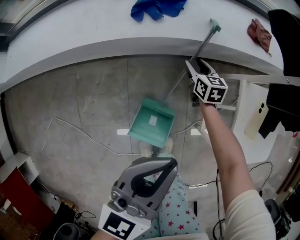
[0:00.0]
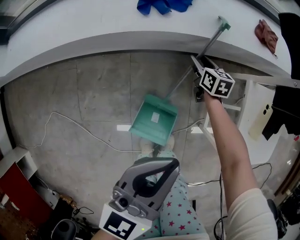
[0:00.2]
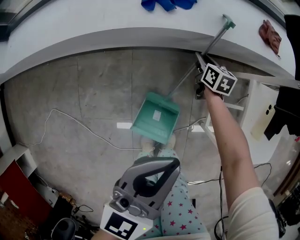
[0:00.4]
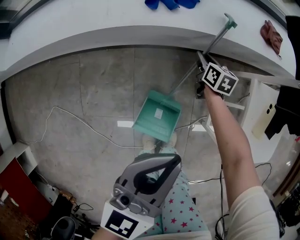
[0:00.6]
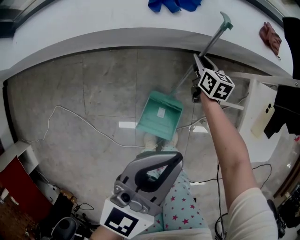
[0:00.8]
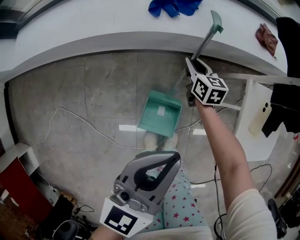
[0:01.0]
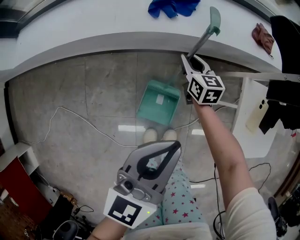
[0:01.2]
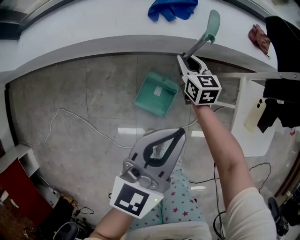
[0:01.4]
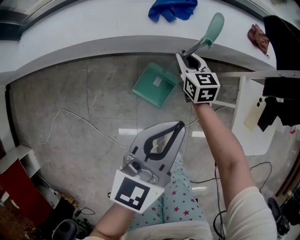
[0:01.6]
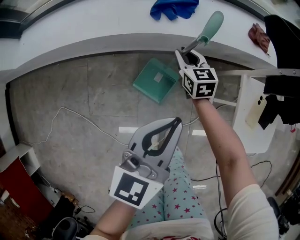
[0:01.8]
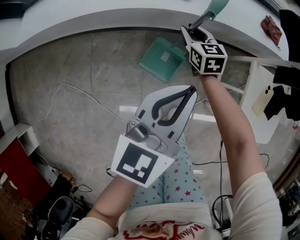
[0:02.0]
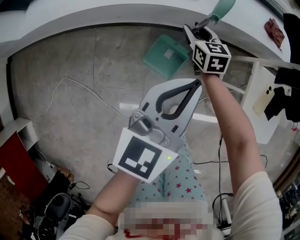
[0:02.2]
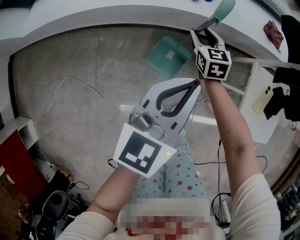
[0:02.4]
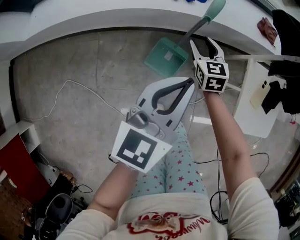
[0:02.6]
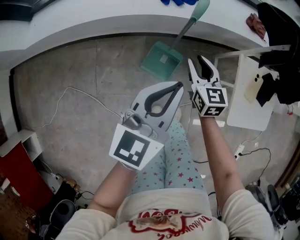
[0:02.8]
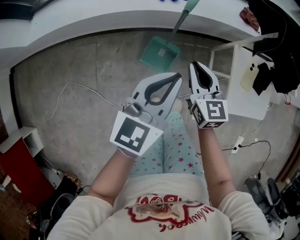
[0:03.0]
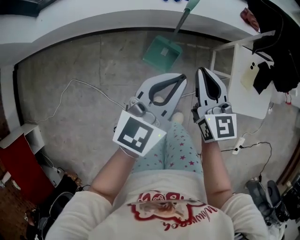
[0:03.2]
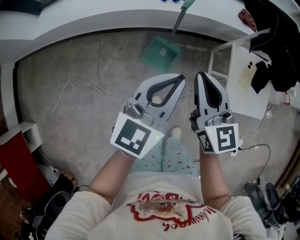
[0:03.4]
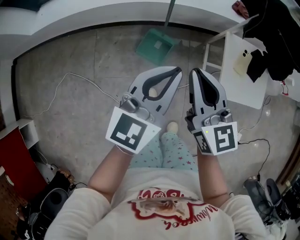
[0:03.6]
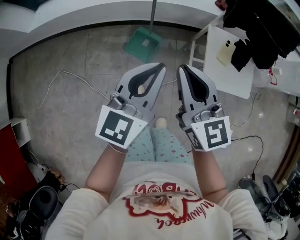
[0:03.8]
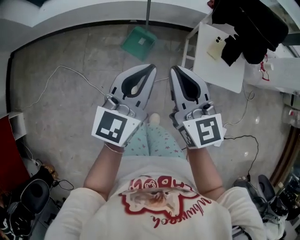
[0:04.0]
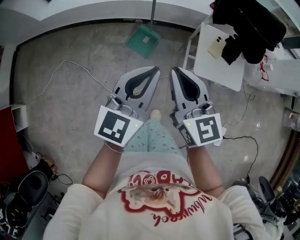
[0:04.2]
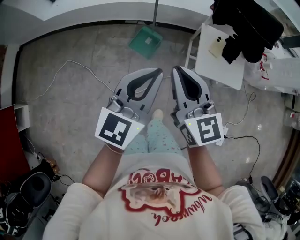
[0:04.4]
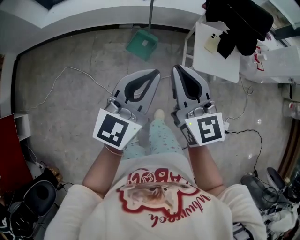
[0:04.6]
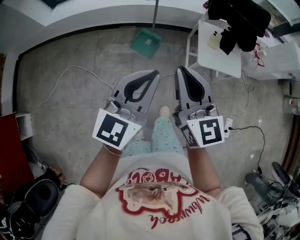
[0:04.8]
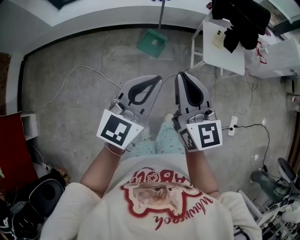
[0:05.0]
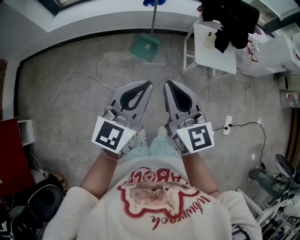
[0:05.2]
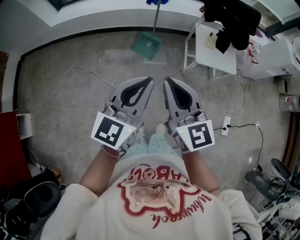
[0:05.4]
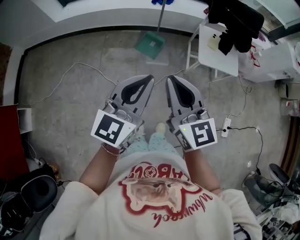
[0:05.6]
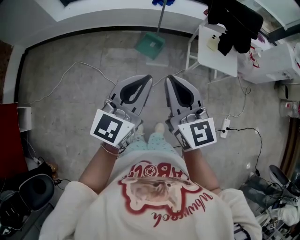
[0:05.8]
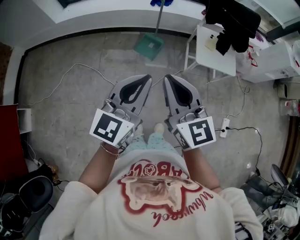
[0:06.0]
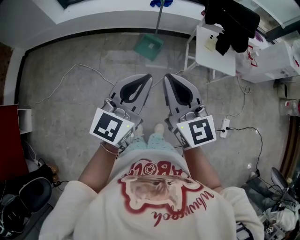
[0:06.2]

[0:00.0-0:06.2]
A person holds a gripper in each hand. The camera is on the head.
0:00.0 to 0:01.6: The right gripper goes approximately 15 cm upward and to the left, and closes up.
0:01.6 to 0:03.2: The left gripper is displaced upward and backward by approximately 15 cm, while the right gripper shifts roughly 35 cm upward and backward, and opens and closes again.
0:03.2 to 0:04.6: The two grippers go roughly 35 cm backward and upward.
0:04.6 to 0:06.2: Both grippers move backward and to the left, some 20 cm.

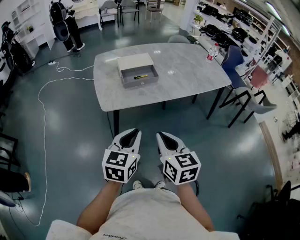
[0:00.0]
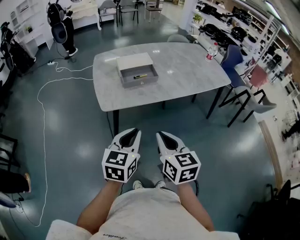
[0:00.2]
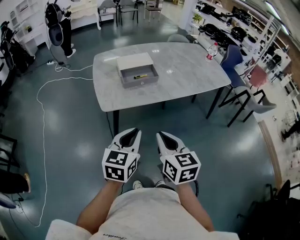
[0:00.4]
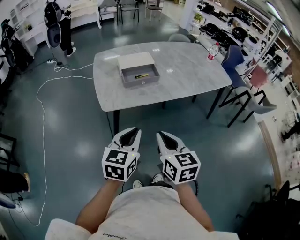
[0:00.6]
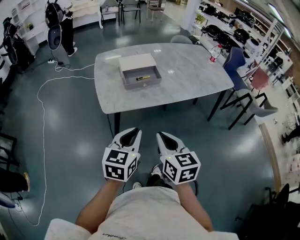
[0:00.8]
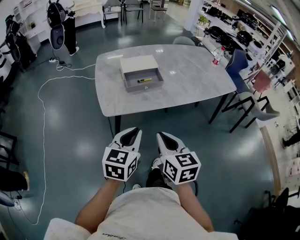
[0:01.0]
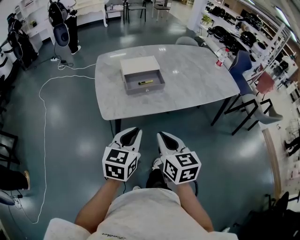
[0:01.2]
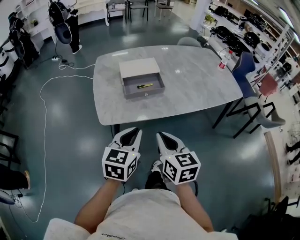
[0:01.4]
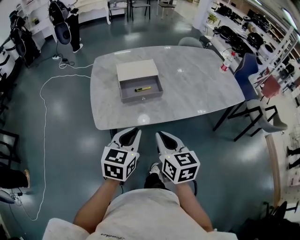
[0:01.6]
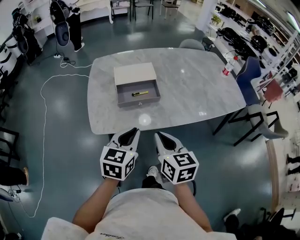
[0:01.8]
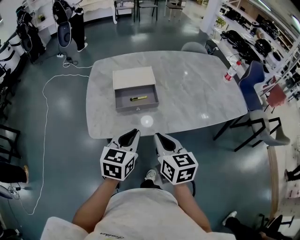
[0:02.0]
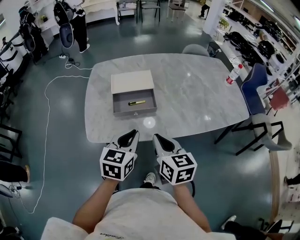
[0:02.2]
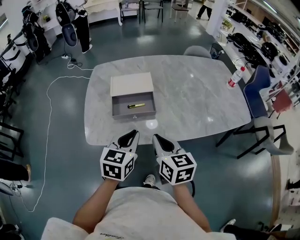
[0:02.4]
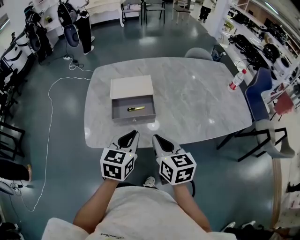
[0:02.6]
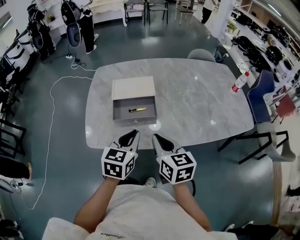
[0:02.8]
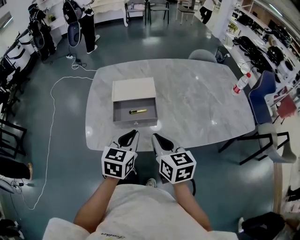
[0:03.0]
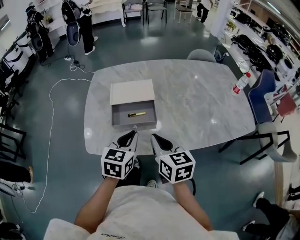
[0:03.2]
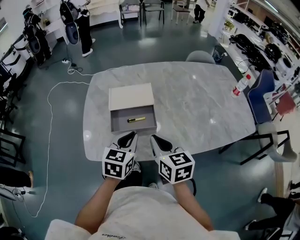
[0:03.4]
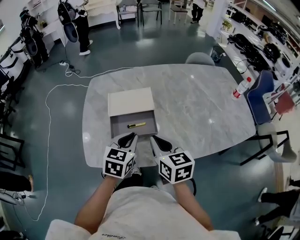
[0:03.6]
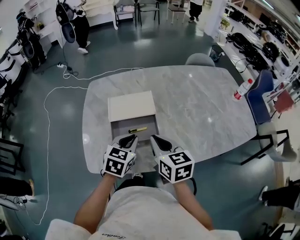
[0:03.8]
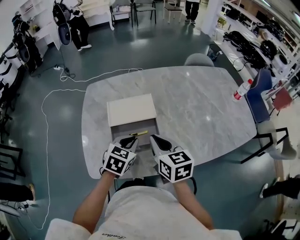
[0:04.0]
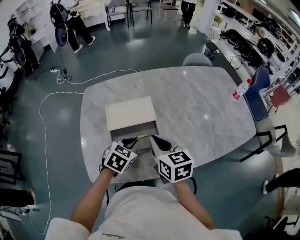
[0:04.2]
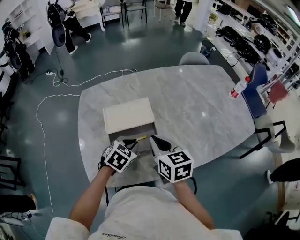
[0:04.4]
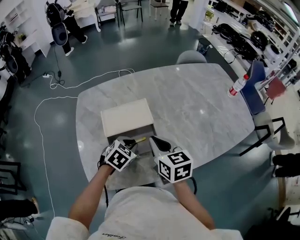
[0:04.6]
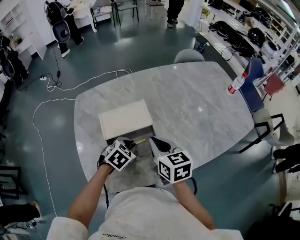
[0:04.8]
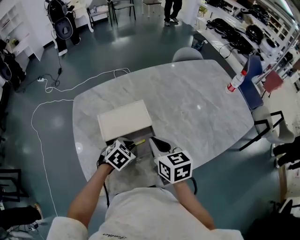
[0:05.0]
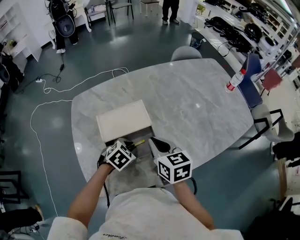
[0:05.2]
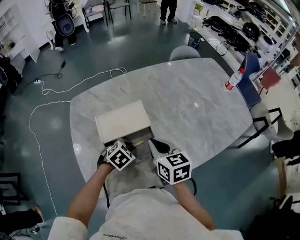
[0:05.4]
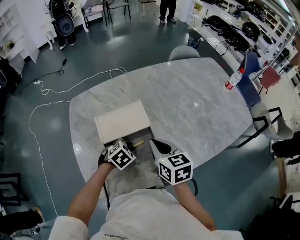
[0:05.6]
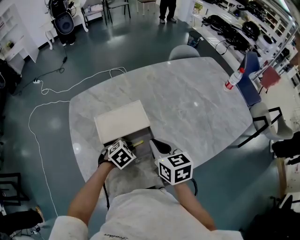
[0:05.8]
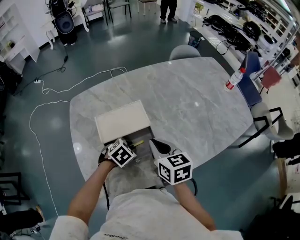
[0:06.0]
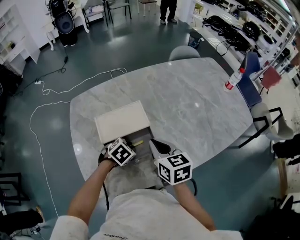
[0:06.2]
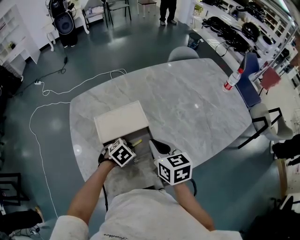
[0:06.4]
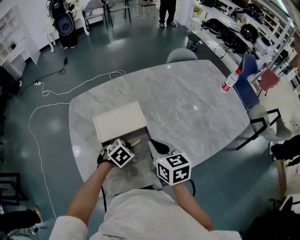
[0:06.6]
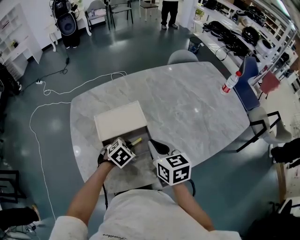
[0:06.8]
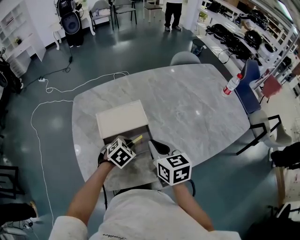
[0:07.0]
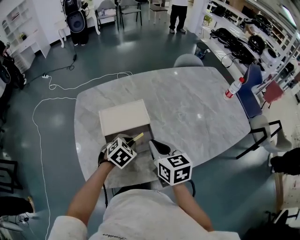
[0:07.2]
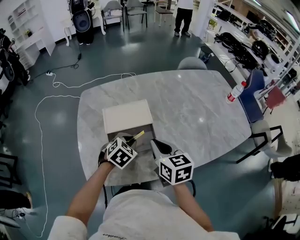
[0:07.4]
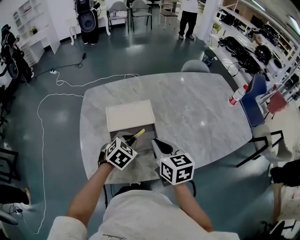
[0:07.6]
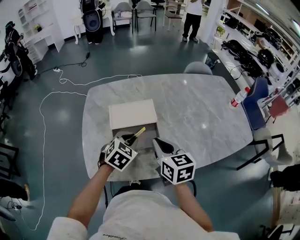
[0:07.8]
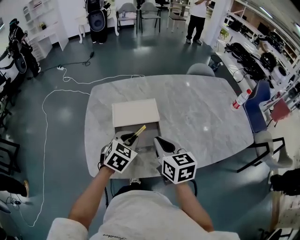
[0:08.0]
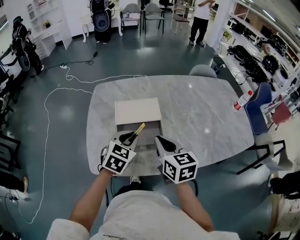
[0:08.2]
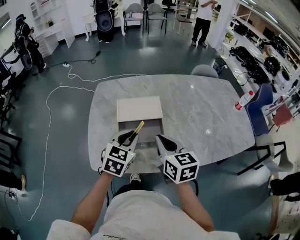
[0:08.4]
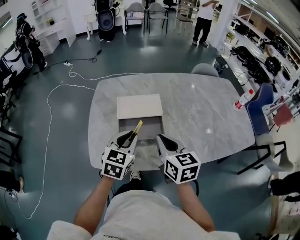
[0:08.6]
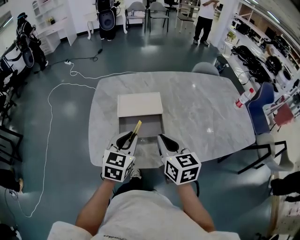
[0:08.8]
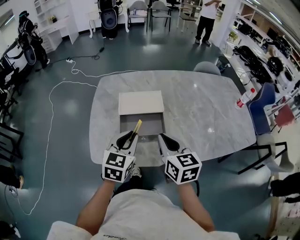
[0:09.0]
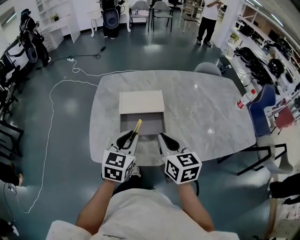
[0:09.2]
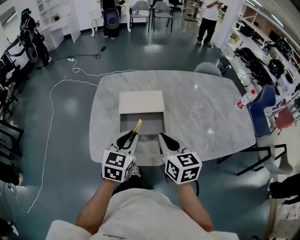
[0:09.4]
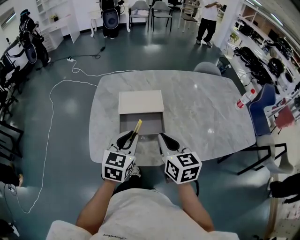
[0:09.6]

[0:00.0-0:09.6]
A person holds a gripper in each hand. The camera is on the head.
0:00.0 to 0:01.6: The grippers both shift forward by some 15 cm.
0:01.6 to 0:03.2: The grippers both shift forward and to the right by some 20 cm.
0:03.2 to 0:04.8: The right gripper shifts some 15 cm forward. Meanwhile the left gripper heads forward and downward, covering approximately 20 cm, and turns by some 50 degrees.
0:04.8 to 0:06.4: The grippers move only a little.
0:06.4 to 0:08.0: The left gripper shifts roughly 15 cm upward, and turns by about 30 degrees, while the right gripper moves backward, some 5 cm.
0:08.0 to 0:09.6: The grippers both shift backward by roughly 5 cm. The left gripper swivels about 30 degrees.

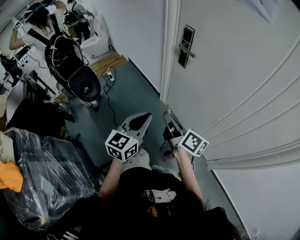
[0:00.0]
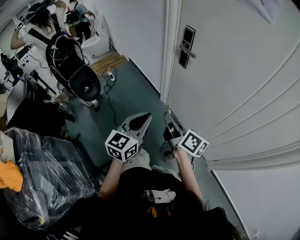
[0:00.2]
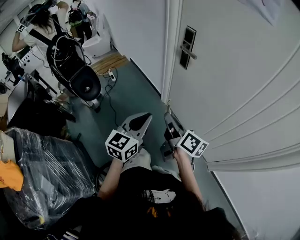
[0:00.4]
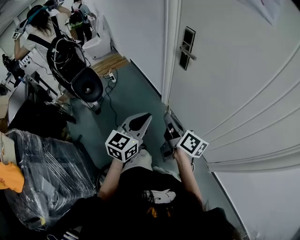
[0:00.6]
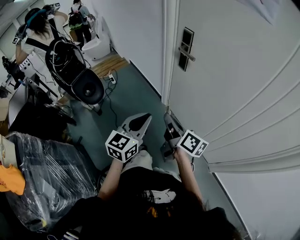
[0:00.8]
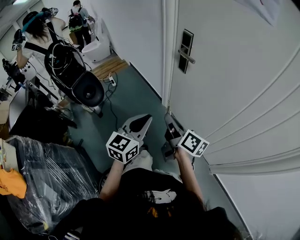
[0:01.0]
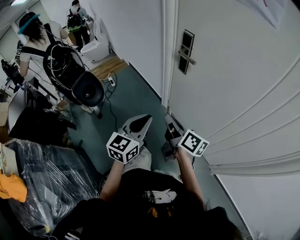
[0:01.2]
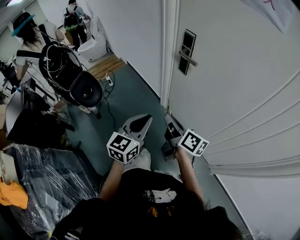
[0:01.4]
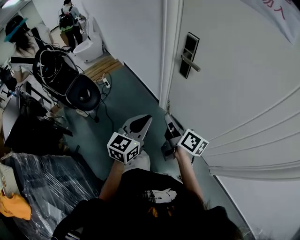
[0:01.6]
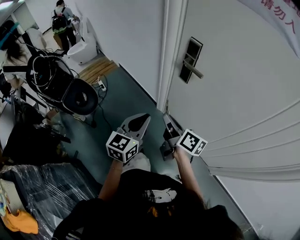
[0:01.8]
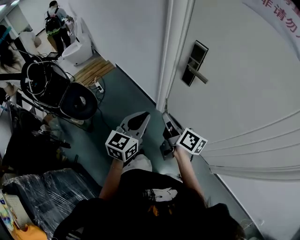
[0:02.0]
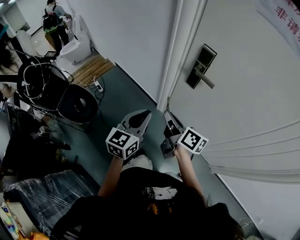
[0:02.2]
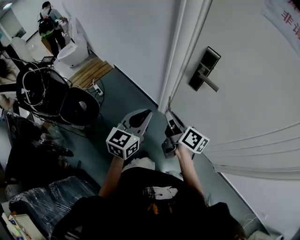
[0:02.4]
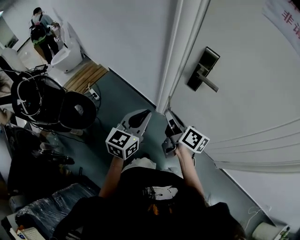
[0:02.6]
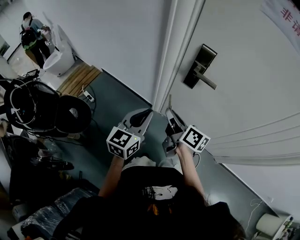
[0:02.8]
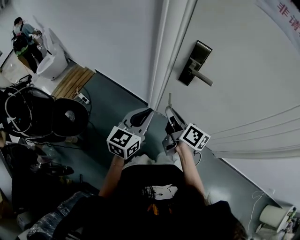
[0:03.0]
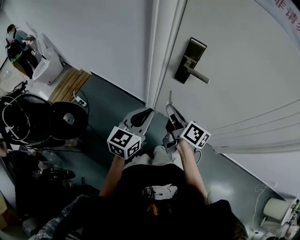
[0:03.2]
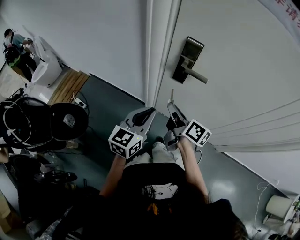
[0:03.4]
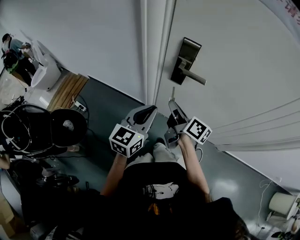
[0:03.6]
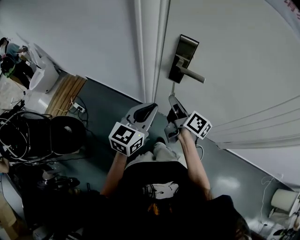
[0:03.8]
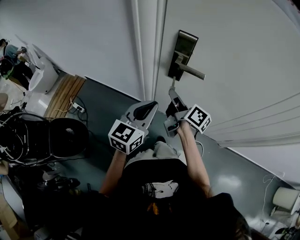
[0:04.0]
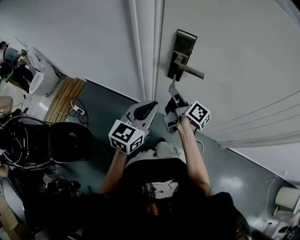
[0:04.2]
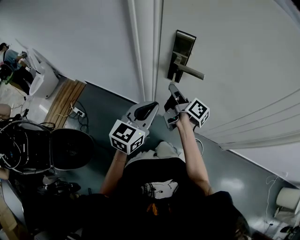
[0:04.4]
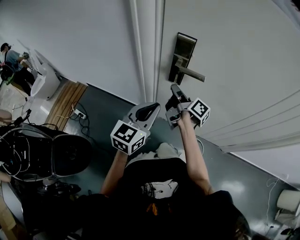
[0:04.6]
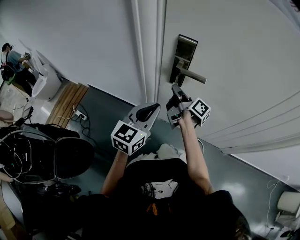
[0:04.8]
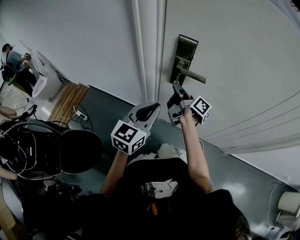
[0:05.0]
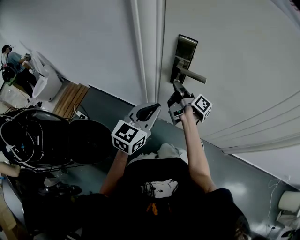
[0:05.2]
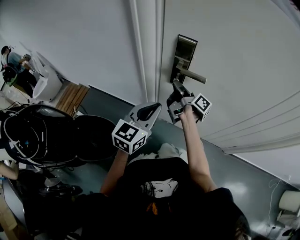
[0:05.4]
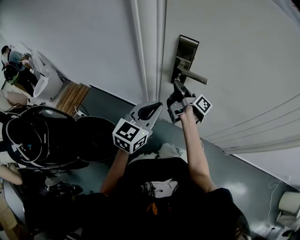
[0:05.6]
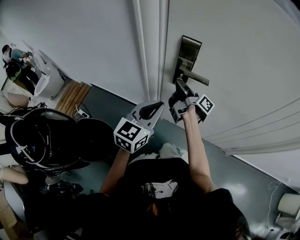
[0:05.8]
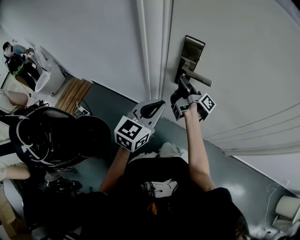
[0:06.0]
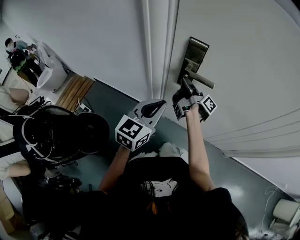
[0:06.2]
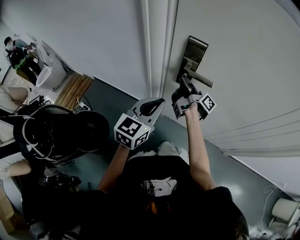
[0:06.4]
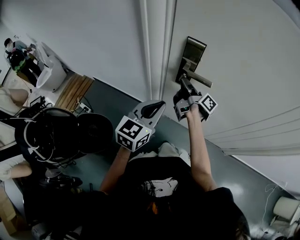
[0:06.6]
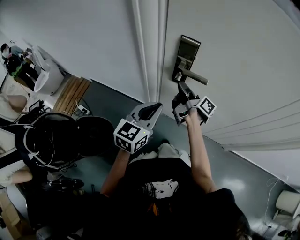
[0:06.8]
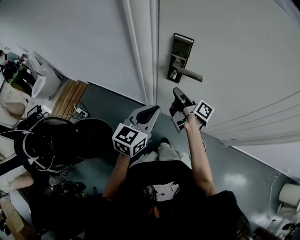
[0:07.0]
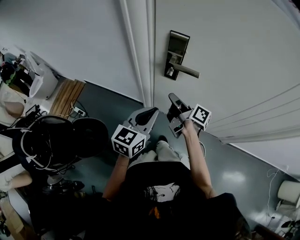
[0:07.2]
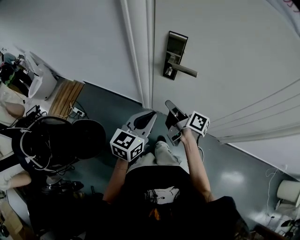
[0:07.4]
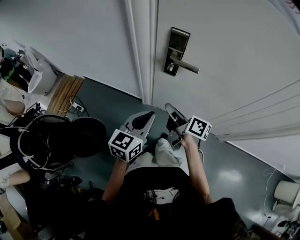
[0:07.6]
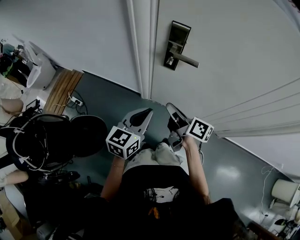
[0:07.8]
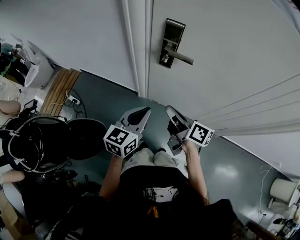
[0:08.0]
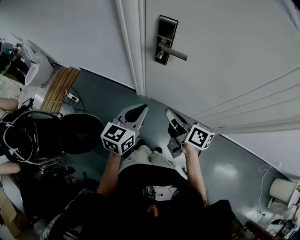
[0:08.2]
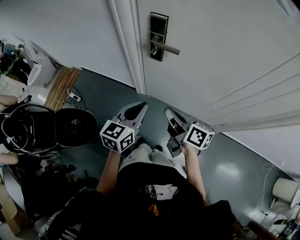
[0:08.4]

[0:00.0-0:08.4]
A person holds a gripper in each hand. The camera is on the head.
0:00.0 to 0:01.4: The two grippers go roughly 5 cm forward.
0:01.4 to 0:02.8: The two grippers go roughly 25 cm forward and to the left.
0:02.8 to 0:04.2: The grippers both shift forward and to the right by roughly 15 cm. The right gripper rotates roughly 20 degrees.
0:04.2 to 0:05.6: The right gripper goes about 5 cm forward, and turns by some 20 degrees.
0:05.6 to 0:07.0: The grippers stay close to where they were, moving slightly.
0:07.0 to 0:08.4: The right gripper goes some 25 cm backward, and rotates approximately 30 degrees. The left gripper heads backward, covering roughly 10 cm.
